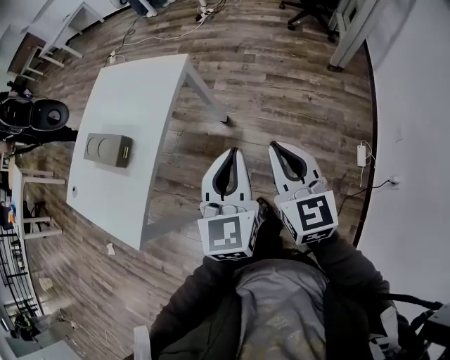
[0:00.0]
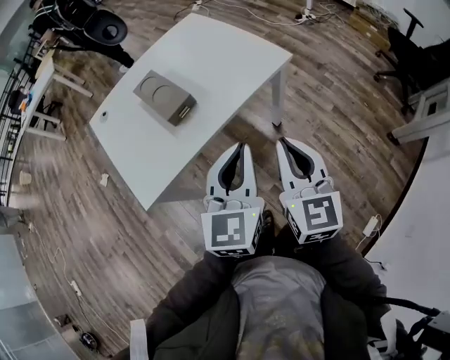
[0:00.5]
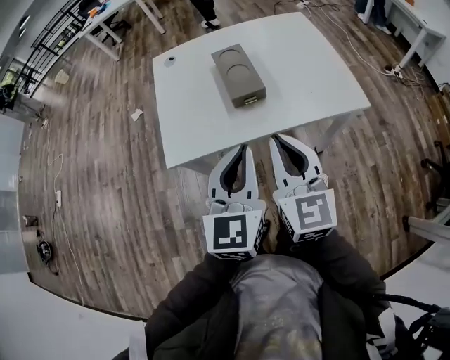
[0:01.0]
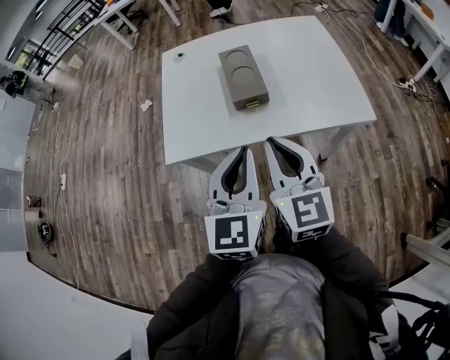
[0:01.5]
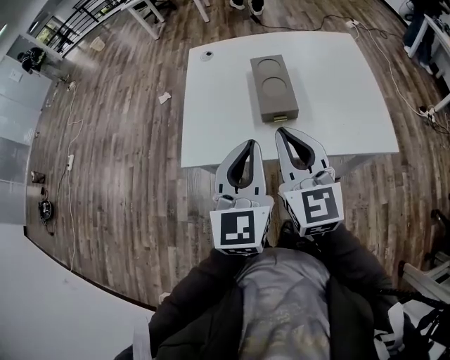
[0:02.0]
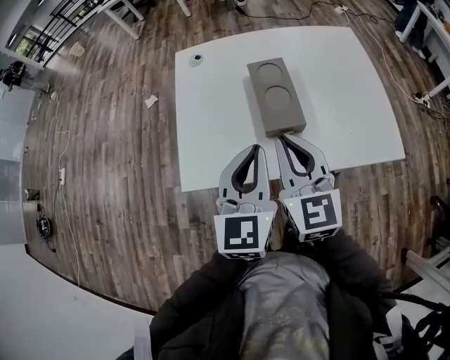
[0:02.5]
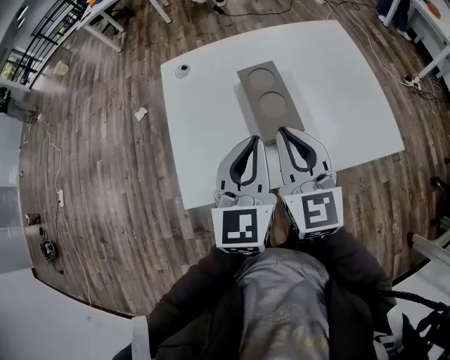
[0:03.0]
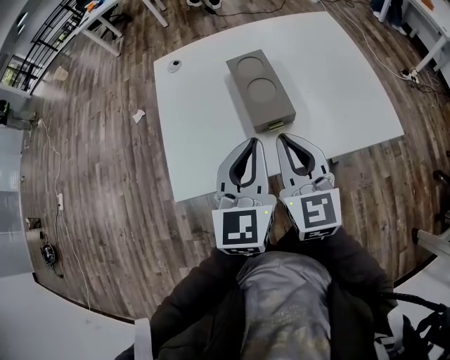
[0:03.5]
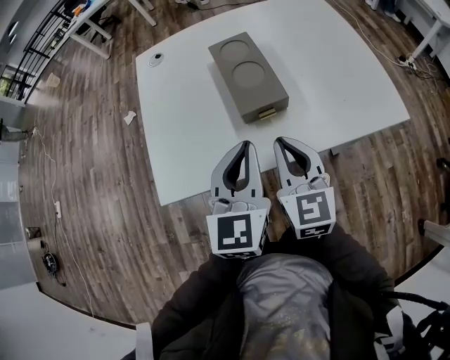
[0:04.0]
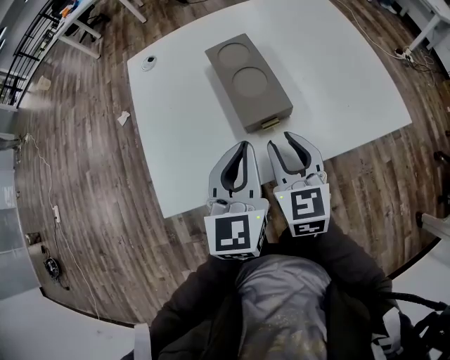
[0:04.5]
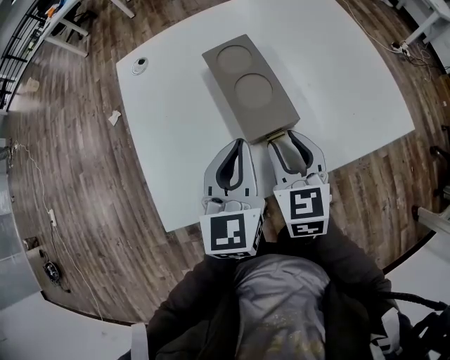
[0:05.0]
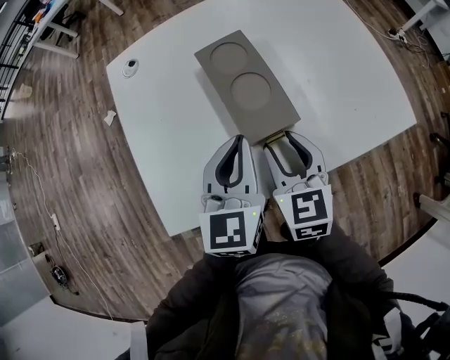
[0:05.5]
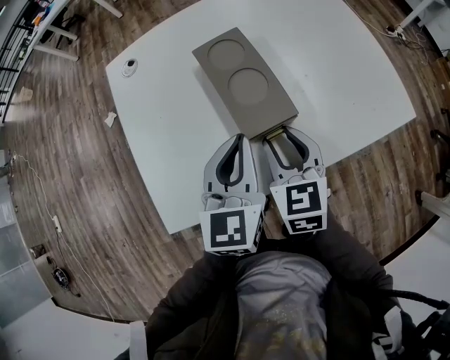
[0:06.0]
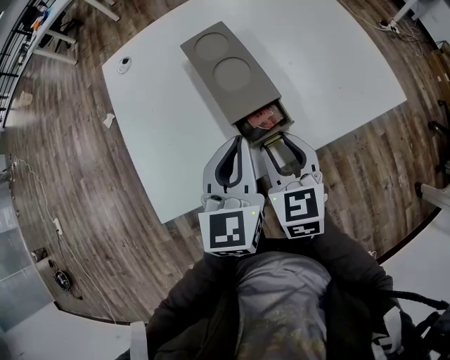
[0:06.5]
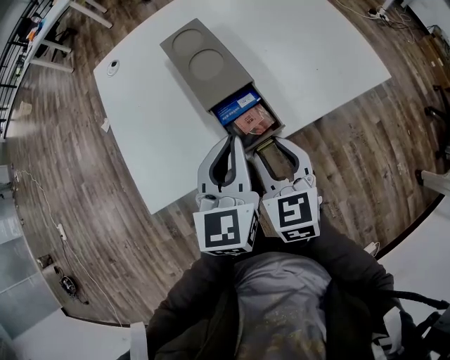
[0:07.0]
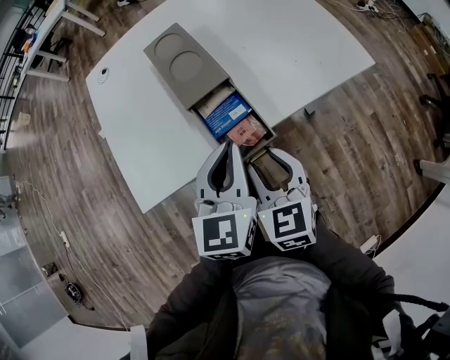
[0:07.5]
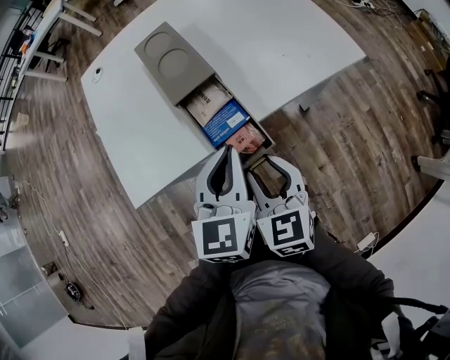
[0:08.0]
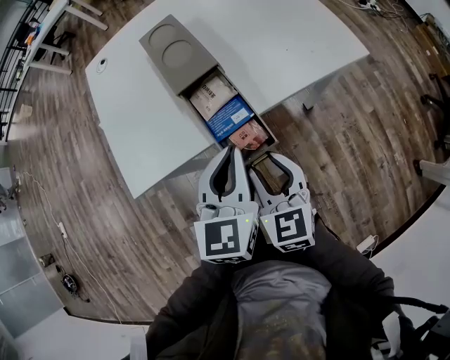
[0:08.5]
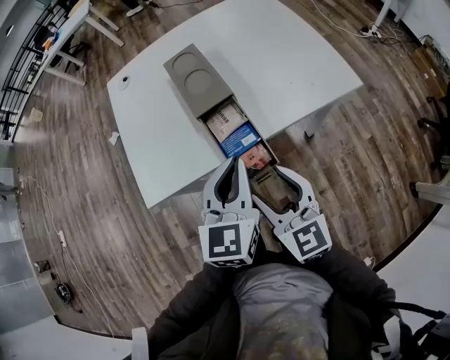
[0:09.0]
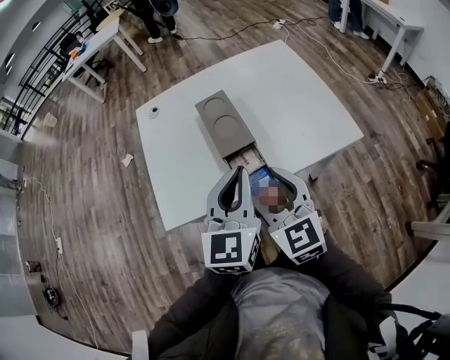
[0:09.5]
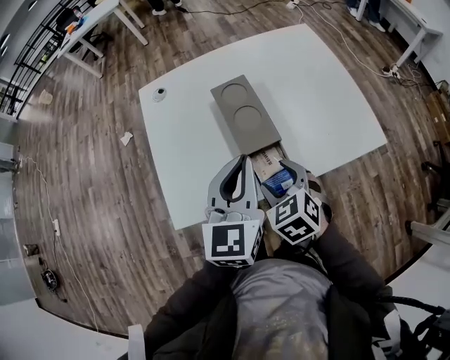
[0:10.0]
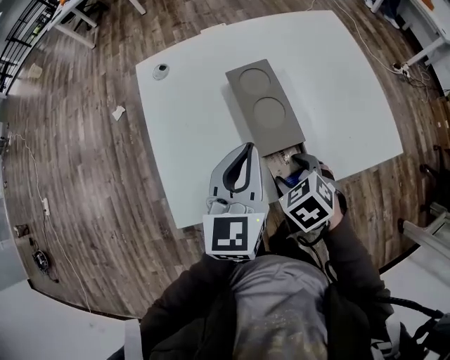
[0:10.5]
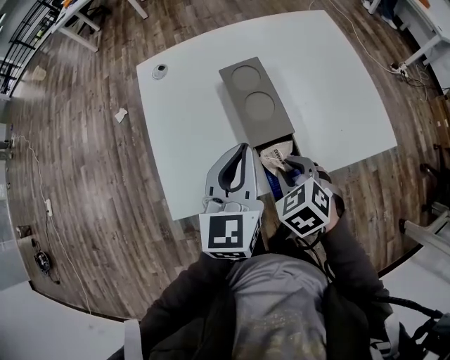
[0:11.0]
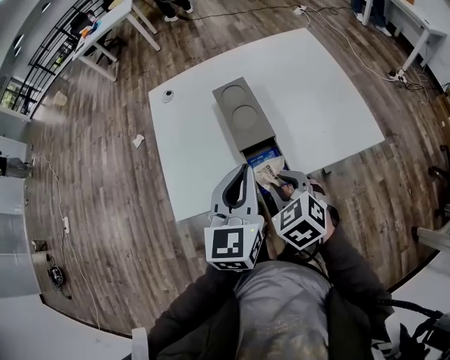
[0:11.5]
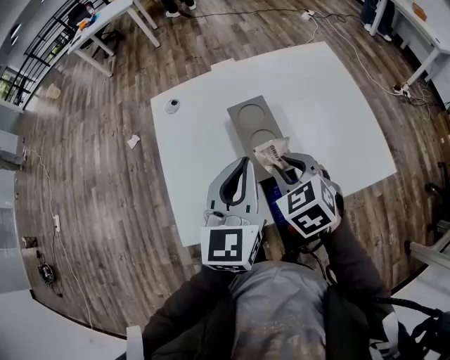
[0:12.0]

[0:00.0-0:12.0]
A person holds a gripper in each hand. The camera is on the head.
0:00.0 to 0:02.0: The right gripper changes place by approximately 40 cm, and turns by about 70 degrees, while the left gripper ends up roughly 35 cm from where it was, and changes its angle by about 70 degrees.
0:02.0 to 0:04.0: The right gripper is displaced downward by about 15 cm. The left gripper goes some 15 cm downward and forward.
0:04.0 to 0:06.0: Both grippers travel together forward, approximately 5 cm. The right gripper opens.
0:06.0 to 0:08.0: The left gripper moves backward and to the right, approximately 15 cm; the right gripper goes some 15 cm backward.
0:08.0 to 0:10.0: The right gripper heads forward, covering approximately 10 cm, travels upward and back again, some 15 cm each way, swivels roughly 30 degrees, and opens up. Meanwhile the left gripper shifts approximately 15 cm upward, forward and to the left.
0:10.0 to 0:12.0: The right gripper moves forward, roughly 10 cm, and closes its fingers. Meanwhile the left gripper moves forward and backward over roughly 10 cm, changing direction 2 times.

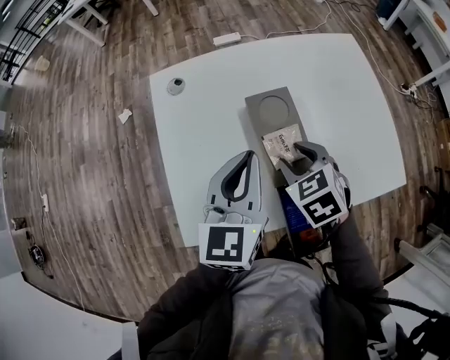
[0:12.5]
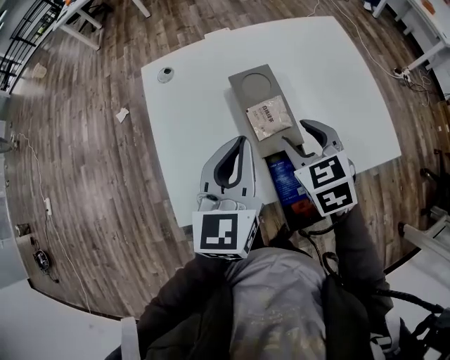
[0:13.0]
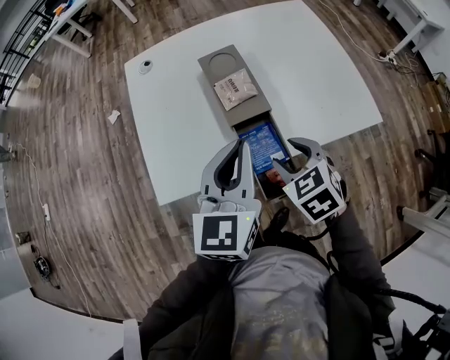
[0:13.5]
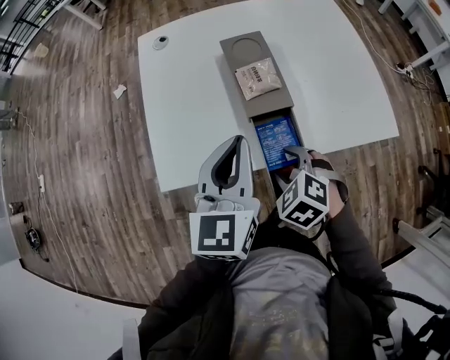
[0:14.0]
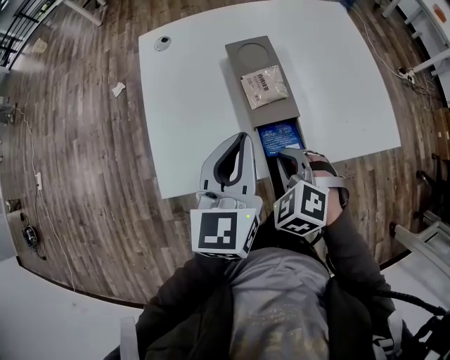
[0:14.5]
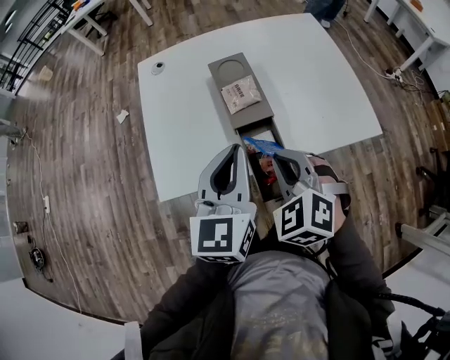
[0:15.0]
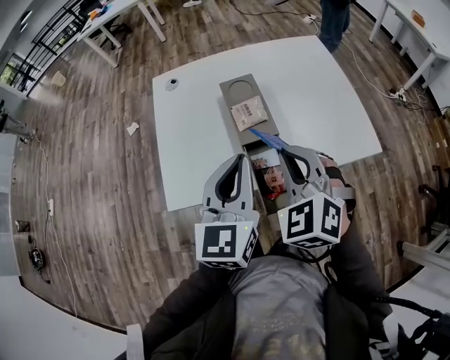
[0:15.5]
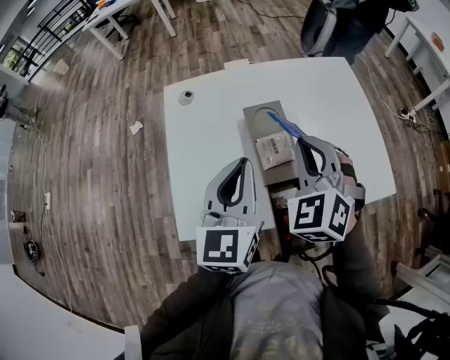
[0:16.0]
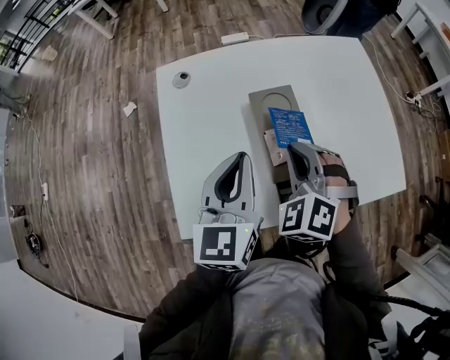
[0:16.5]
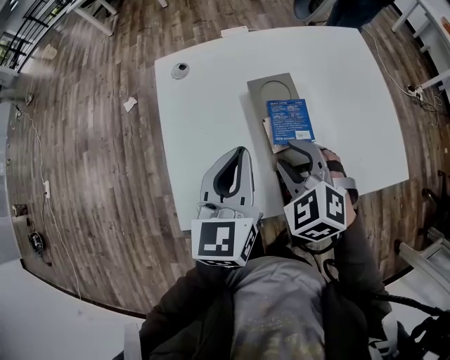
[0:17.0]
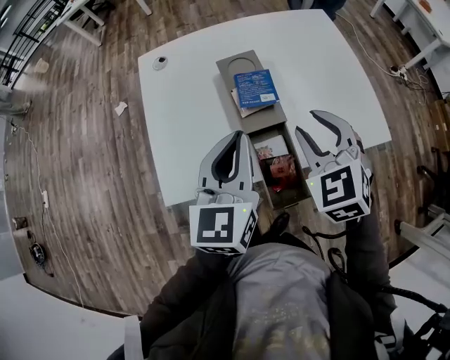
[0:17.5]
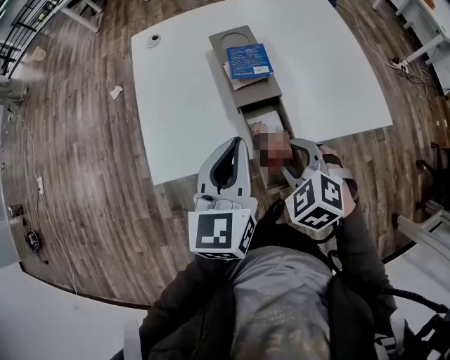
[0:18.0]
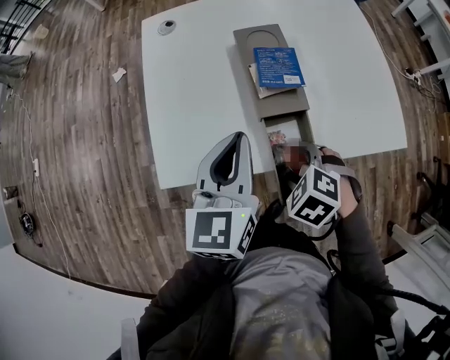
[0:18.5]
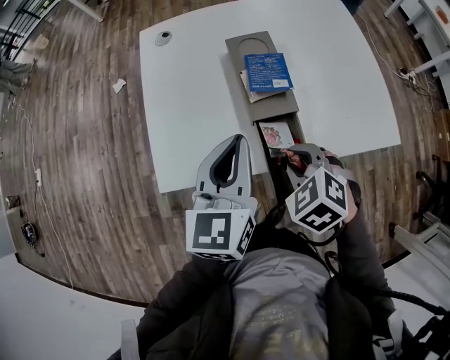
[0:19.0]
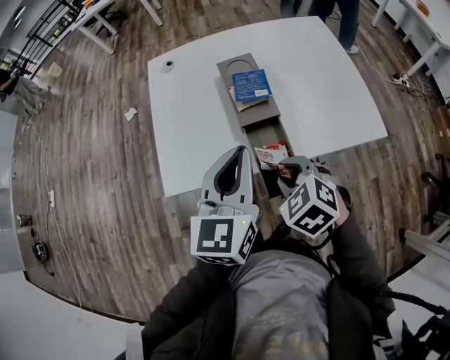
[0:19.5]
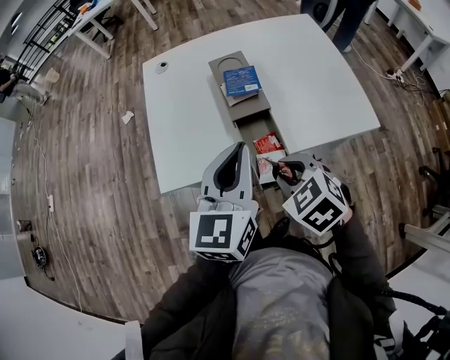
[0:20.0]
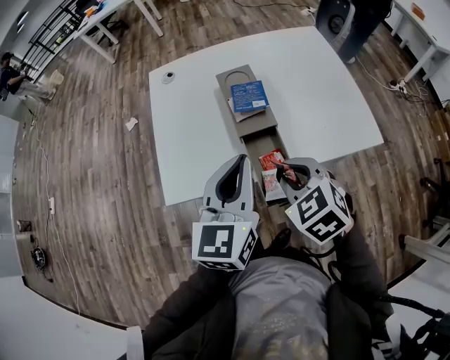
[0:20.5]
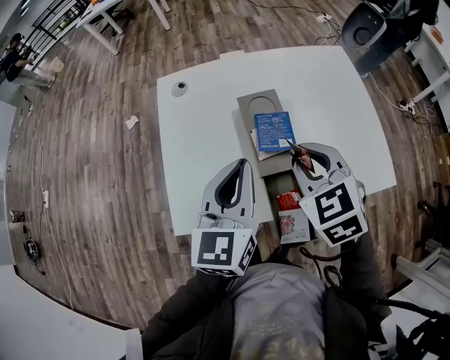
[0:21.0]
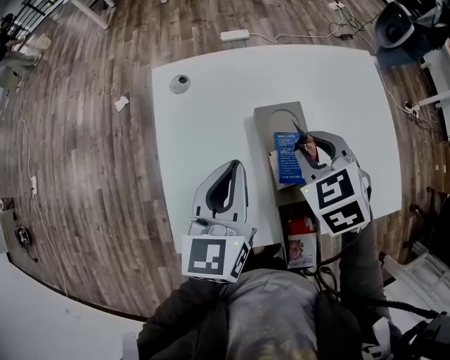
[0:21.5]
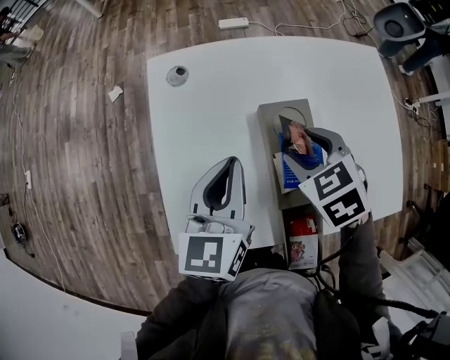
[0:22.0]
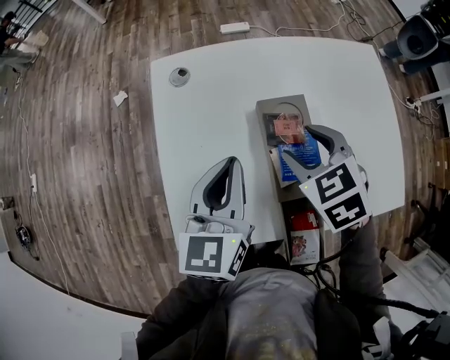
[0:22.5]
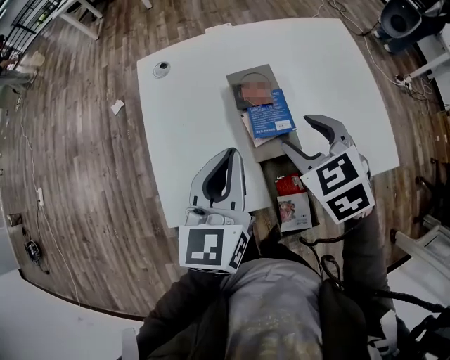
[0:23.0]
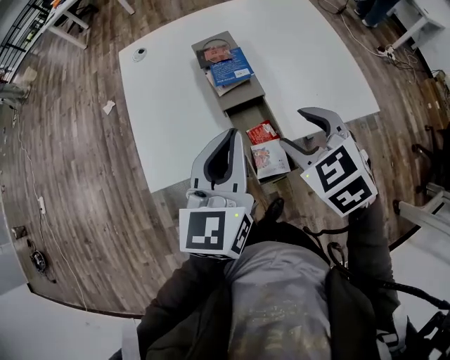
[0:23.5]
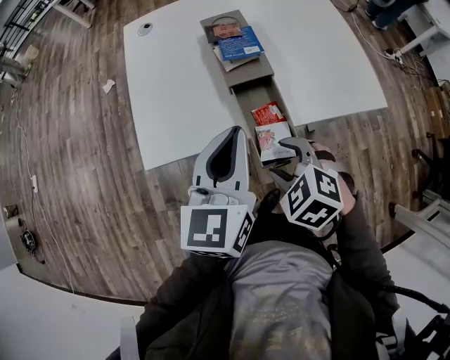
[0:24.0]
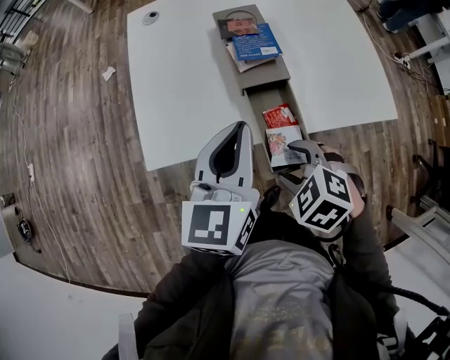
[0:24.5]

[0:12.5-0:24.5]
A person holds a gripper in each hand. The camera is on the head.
0:12.5 to 0:14.5: The grippers both shift backward by roughly 10 cm. The right gripper turns by roughly 30 degrees, and closes up.
0:14.5 to 0:16.5: The right gripper heads forward and upward, covering roughly 15 cm. The left gripper shifts approximately 10 cm forward.
0:16.5 to 0:18.5: The right gripper ends up some 20 cm from where it was, angles its fingers downward, by about 30 degrees, and opens.
0:18.5 to 0:20.5: The right gripper is displaced upward by roughly 15 cm, rotates some 30 degrees, and closes. Meanwhile the left gripper moves roughly 10 cm.
0:20.5 to 0:22.5: The left gripper shifts roughly 20 cm forward and to the left. Meanwhile the right gripper heads forward, covering roughly 25 cm, and opens up.
0:22.5 to 0:24.5: The left gripper goes some 20 cm backward. Meanwhile the right gripper goes roughly 30 cm backward, and rotates about 30 degrees.

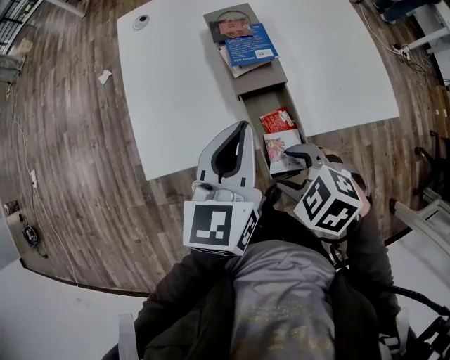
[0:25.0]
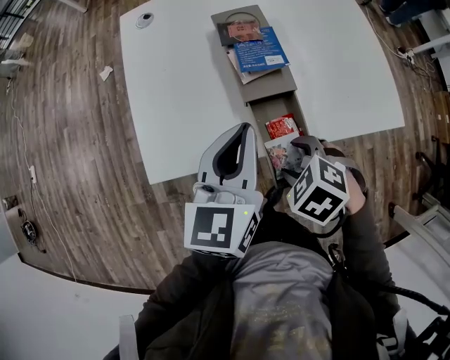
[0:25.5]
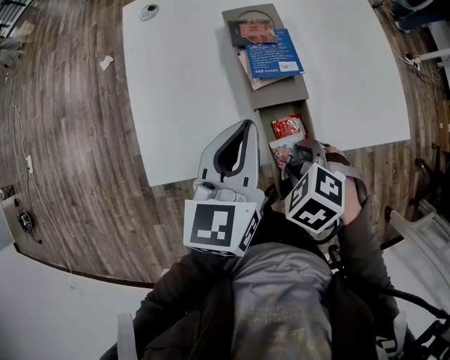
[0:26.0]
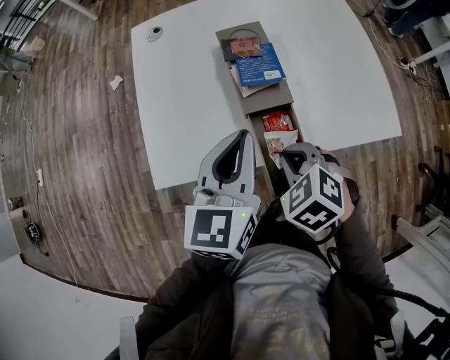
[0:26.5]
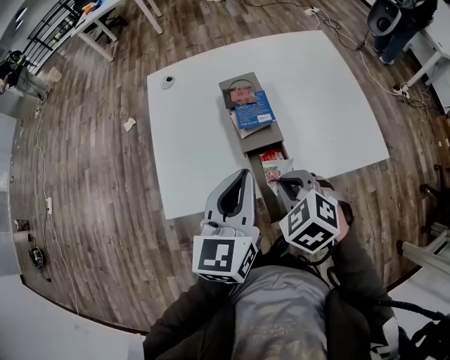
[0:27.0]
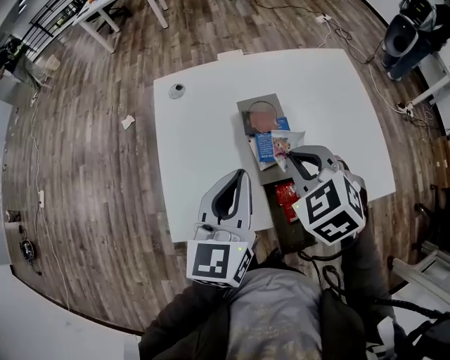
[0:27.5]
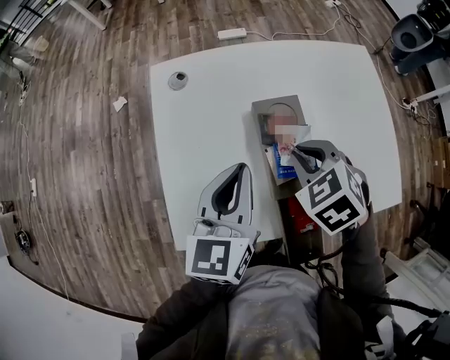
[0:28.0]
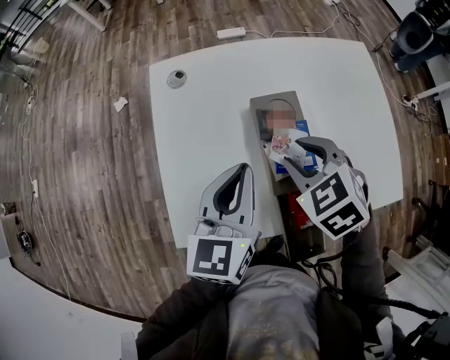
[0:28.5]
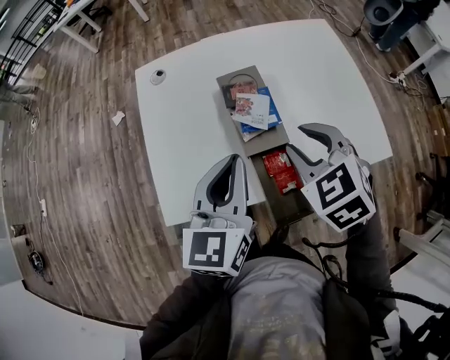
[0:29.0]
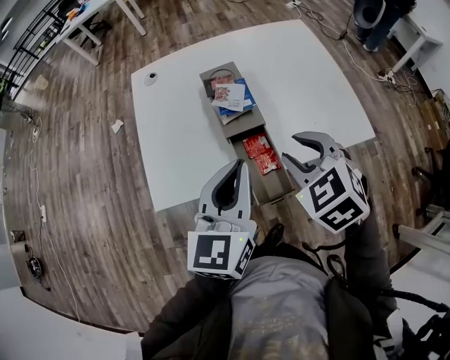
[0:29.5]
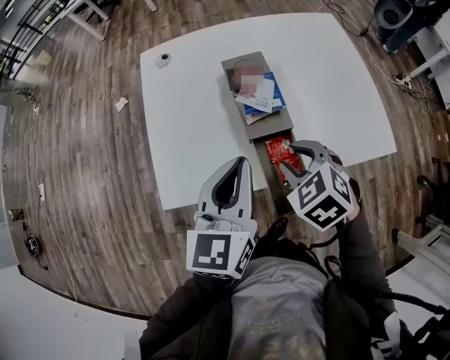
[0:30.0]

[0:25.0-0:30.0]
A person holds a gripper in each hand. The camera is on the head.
0:25.0 to 0:27.5: The right gripper shifts by about 25 cm, changes its angle by about 30 degrees, and closes. Meanwhile the left gripper changes place by roughly 10 cm.
0:27.5 to 0:30.0: The right gripper shifts about 10 cm backward and downward, and opens its fingers. Meanwhile the left gripper goes forward and backward, approximately 20 cm each way, reversing 2 times.
